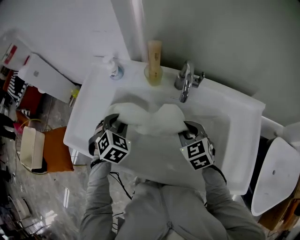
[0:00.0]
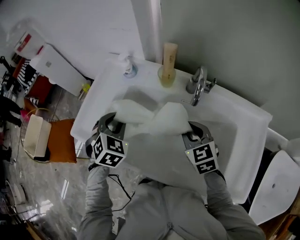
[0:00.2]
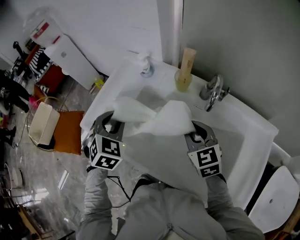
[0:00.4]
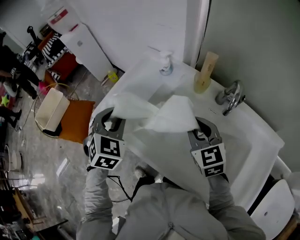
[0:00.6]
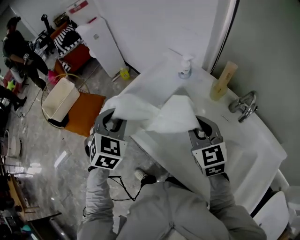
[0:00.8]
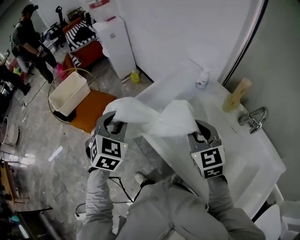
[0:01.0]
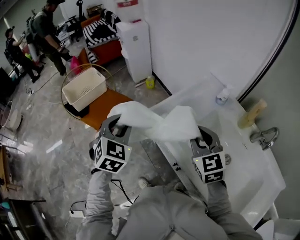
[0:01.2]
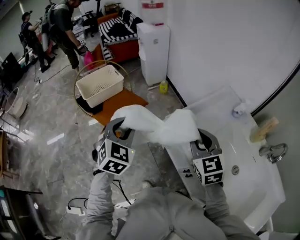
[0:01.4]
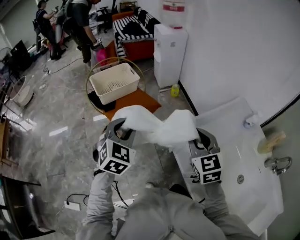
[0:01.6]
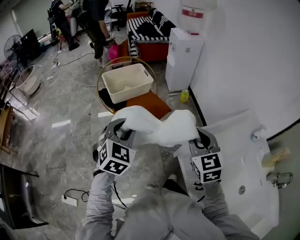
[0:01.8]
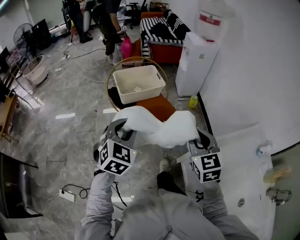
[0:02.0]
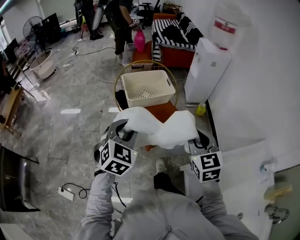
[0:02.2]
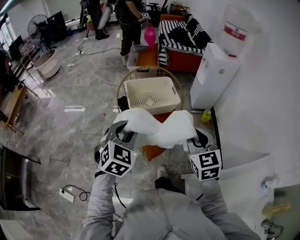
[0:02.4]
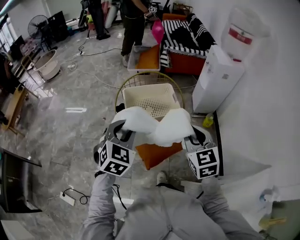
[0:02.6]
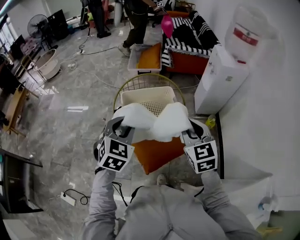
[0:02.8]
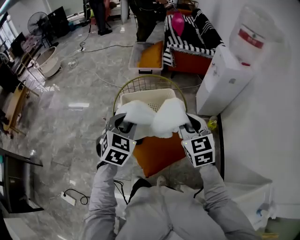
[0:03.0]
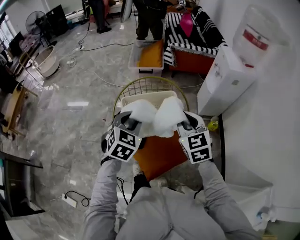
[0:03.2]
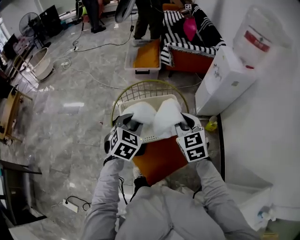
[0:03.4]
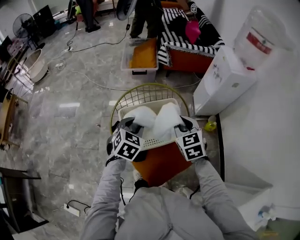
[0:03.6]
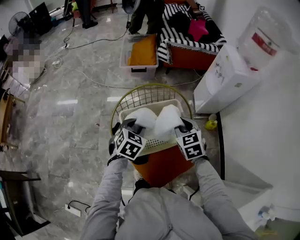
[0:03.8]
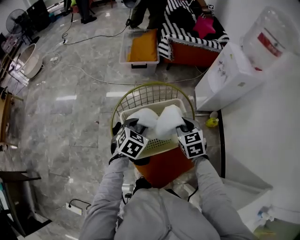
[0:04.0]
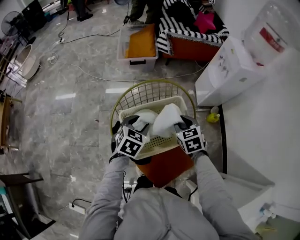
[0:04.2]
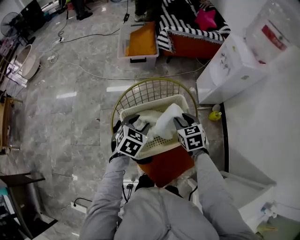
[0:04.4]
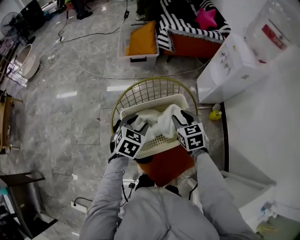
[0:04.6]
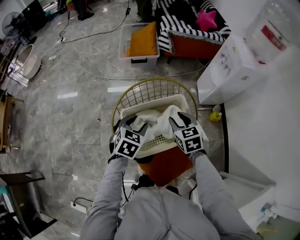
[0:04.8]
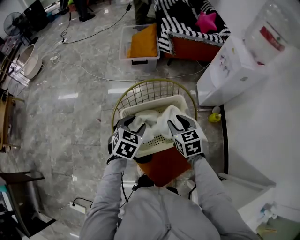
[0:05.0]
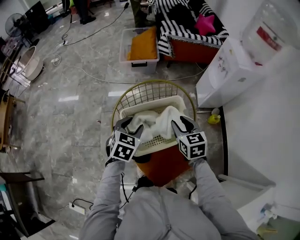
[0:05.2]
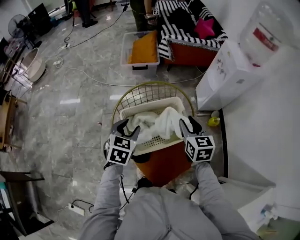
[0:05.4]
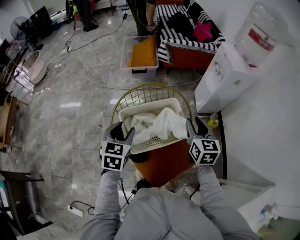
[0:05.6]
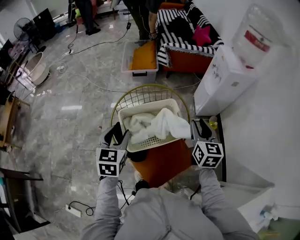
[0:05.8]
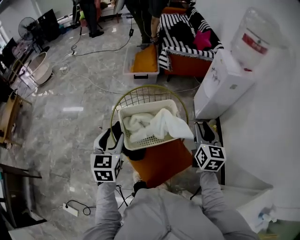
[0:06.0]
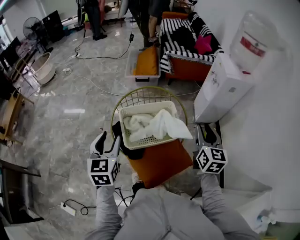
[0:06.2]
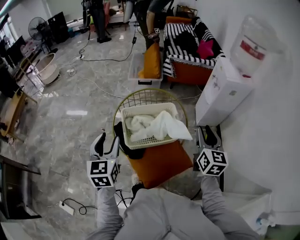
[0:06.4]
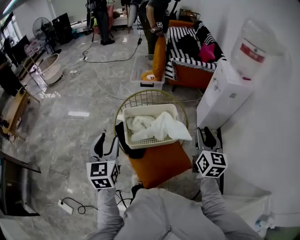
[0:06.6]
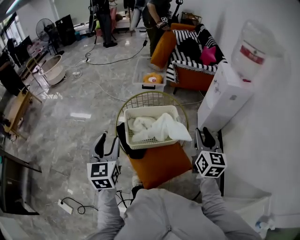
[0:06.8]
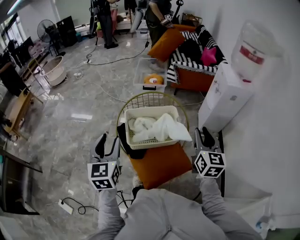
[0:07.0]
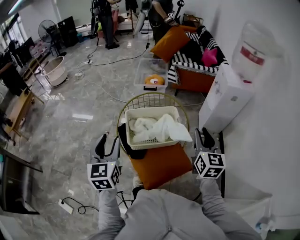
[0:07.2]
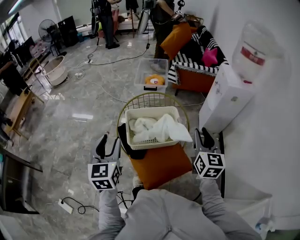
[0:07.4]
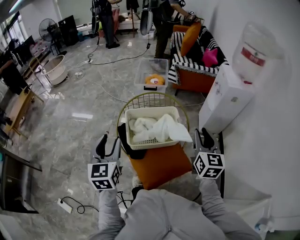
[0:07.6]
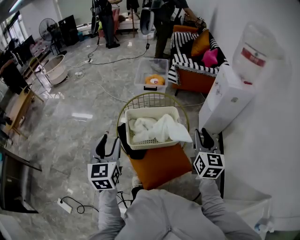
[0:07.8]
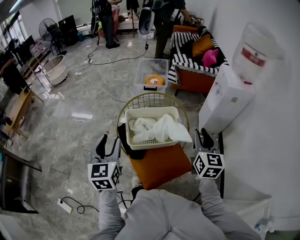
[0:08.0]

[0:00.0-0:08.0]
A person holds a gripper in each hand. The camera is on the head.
0:00.0 to 0:01.6: Both grippers are carried roughly 60 cm. The right gripper swivels some 50 degrees, while the left gripper turns by about 50 degrees.
0:01.6 to 0:03.2: Both grippers are carried forward, roughly 50 cm. The right gripper changes its angle by about 30 degrees. Meanwhile the left gripper changes its angle by approximately 20 degrees.
0:03.2 to 0:04.8: The right gripper heads downward, forward and to the left, covering approximately 20 cm, and turns by about 20 degrees. Meanwhile the left gripper heads downward and forward, covering approximately 20 cm.
0:04.8 to 0:06.4: The left gripper goes roughly 25 cm backward and upward, and turns by roughly 40 degrees. The right gripper travels to the right, upward and backward by about 25 cm, and swivels approximately 40 degrees.
0:06.4 to 0:08.0: There are only small adjustments of the grippers.

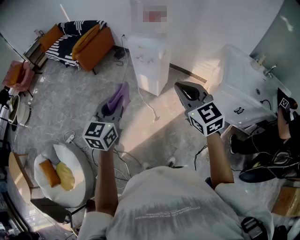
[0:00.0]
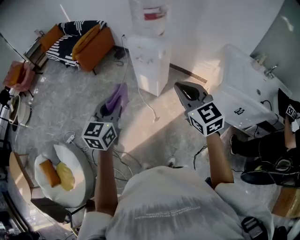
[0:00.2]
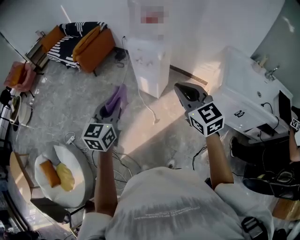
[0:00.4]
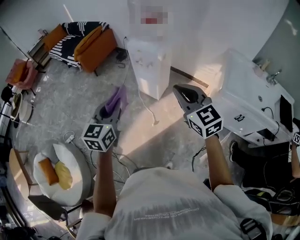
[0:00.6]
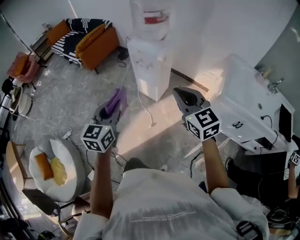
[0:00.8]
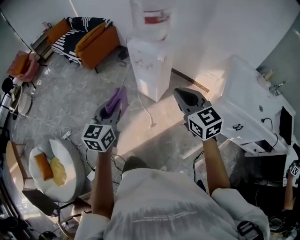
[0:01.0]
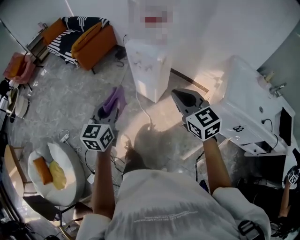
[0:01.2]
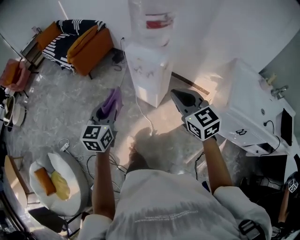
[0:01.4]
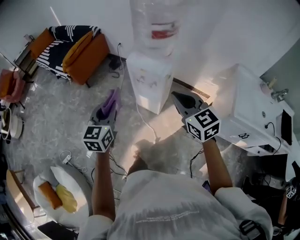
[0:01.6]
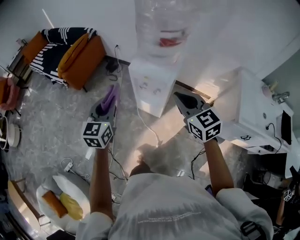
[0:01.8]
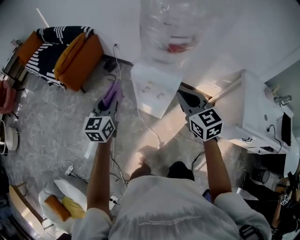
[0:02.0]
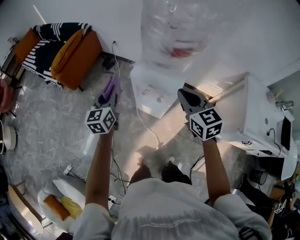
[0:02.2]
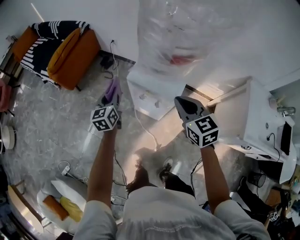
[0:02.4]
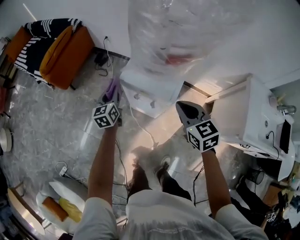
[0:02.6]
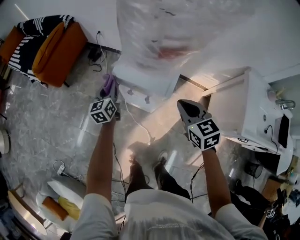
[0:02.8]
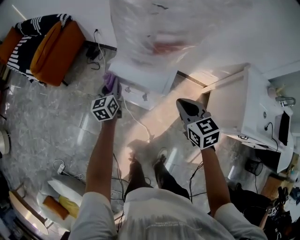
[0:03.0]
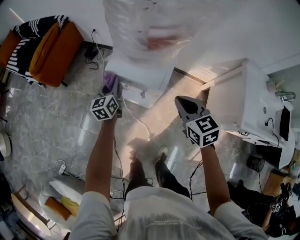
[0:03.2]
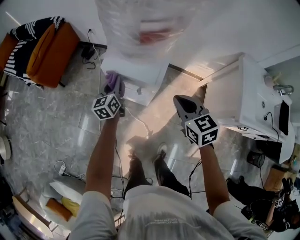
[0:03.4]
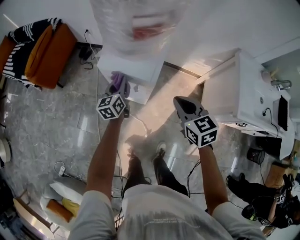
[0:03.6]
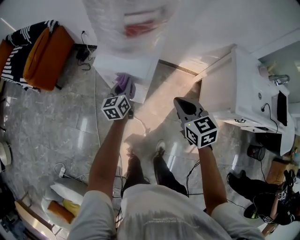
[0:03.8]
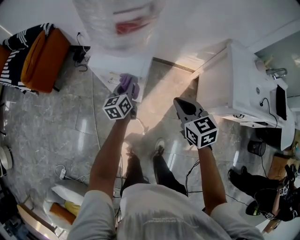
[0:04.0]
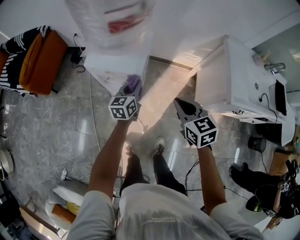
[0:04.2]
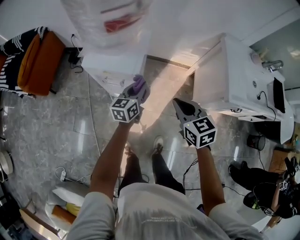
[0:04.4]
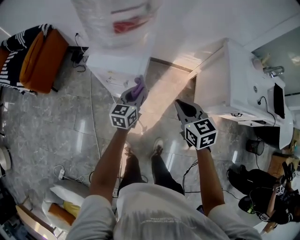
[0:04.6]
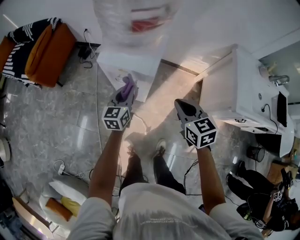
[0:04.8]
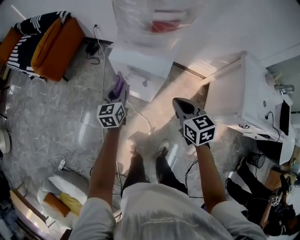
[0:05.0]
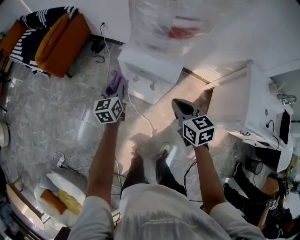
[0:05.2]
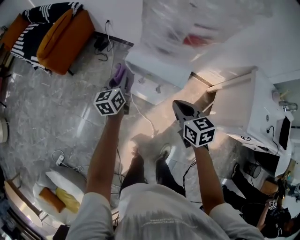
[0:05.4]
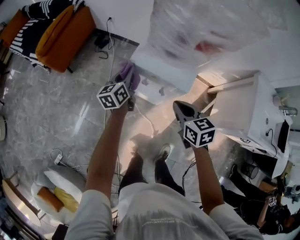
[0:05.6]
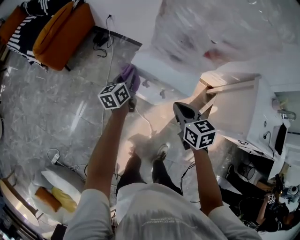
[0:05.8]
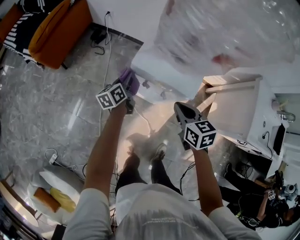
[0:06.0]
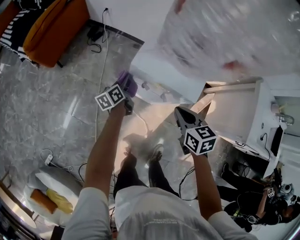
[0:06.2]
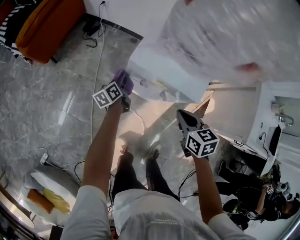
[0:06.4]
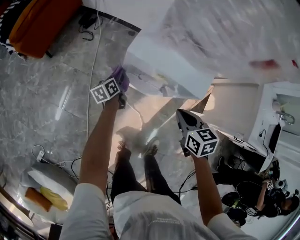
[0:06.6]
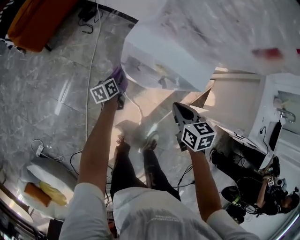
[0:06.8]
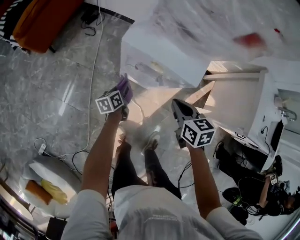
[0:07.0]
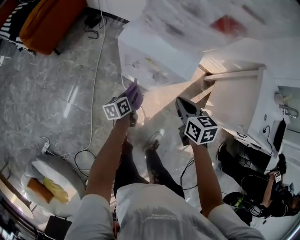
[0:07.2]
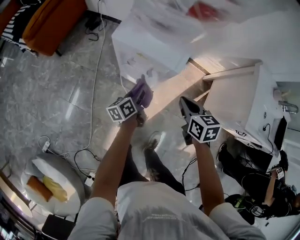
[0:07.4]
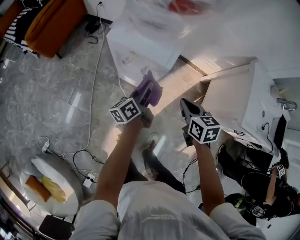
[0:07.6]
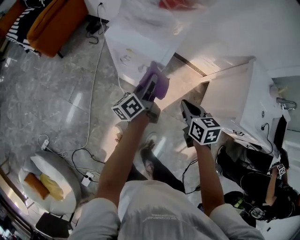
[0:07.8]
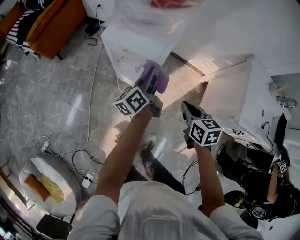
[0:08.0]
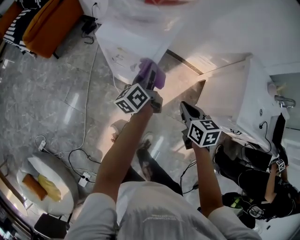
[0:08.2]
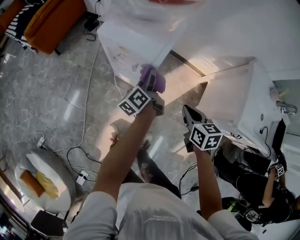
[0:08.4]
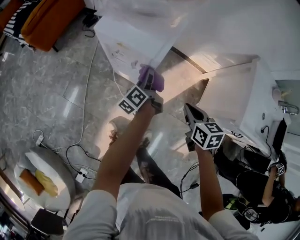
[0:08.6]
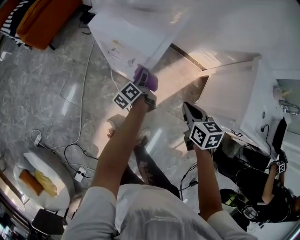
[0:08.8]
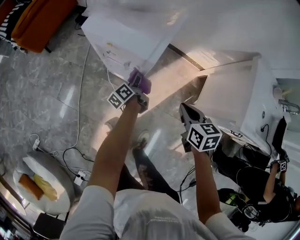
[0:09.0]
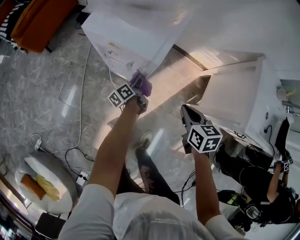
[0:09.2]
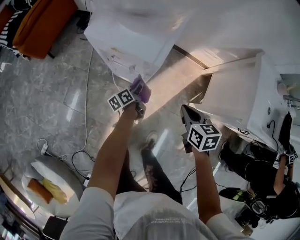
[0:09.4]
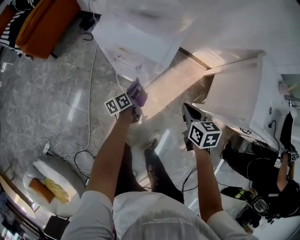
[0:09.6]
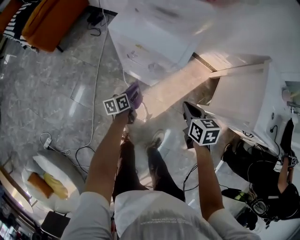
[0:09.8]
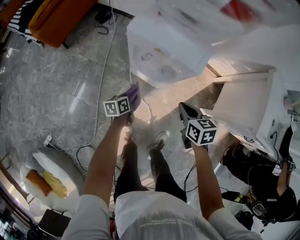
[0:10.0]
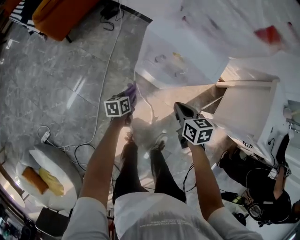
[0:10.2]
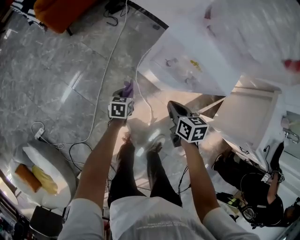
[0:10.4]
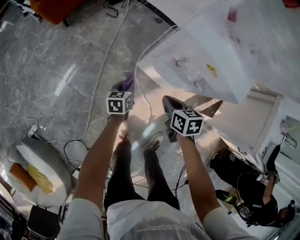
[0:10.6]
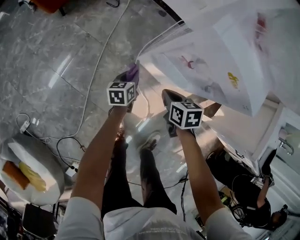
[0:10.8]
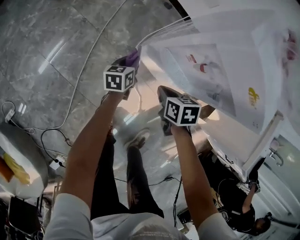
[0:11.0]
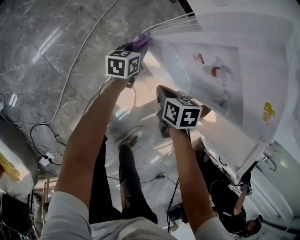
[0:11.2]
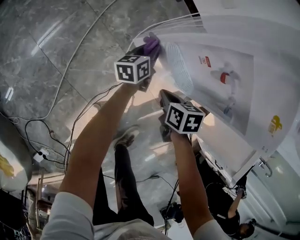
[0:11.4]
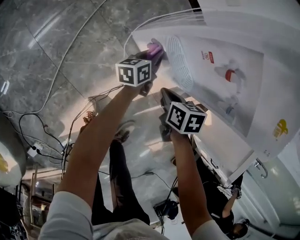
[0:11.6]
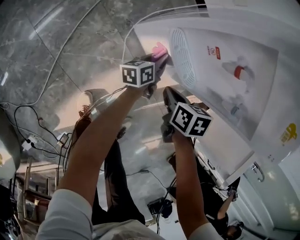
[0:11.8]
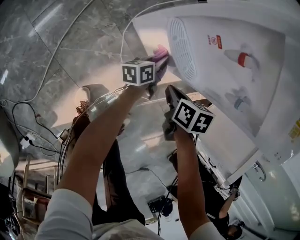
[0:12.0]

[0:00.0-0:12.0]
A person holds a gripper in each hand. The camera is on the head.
0:00.0 to 0:01.6: The grippers both shift forward by about 25 cm.
0:01.6 to 0:03.0: The right gripper moves forward and downward, some 25 cm, and swivels approximately 20 degrees. Meanwhile the left gripper goes roughly 40 cm forward and downward.
0:03.0 to 0:04.4: The right gripper is displaced backward and to the right by roughly 15 cm; the left gripper moves to the right and backward, about 30 cm, and rotates about 30 degrees.
0:04.4 to 0:06.0: The right gripper travels to the left, forward and downward by some 25 cm. Meanwhile the left gripper moves to the left and forward, approximately 30 cm, and changes its angle by roughly 30 degrees.
0:06.0 to 0:07.6: The left gripper travels to the right and backward by about 25 cm, and goes downward and returns, approximately 20 cm each way; the right gripper is displaced to the right and backward by approximately 15 cm.
0:07.6 to 0:09.0: The left gripper shifts some 15 cm downward, and changes its angle by roughly 20 degrees, while the right gripper moves to the right and downward, some 10 cm.
0:09.0 to 0:10.4: Both grippers move to the left, about 25 cm. The left gripper twists about 50 degrees clockwise, seen from behind.
0:10.4 to 0:12.0: The left gripper goes approximately 25 cm to the right and downward, and tips its fingers upward by roughly 30 degrees, while the right gripper is displaced downward by approximately 25 cm, and rotates roughly 30 degrees.

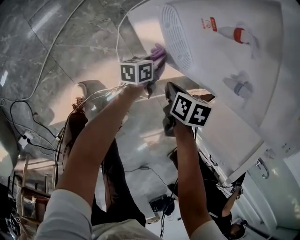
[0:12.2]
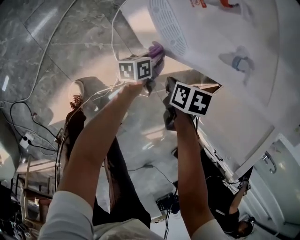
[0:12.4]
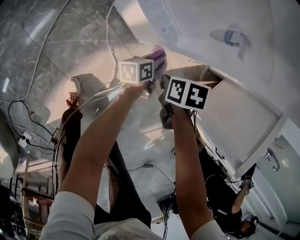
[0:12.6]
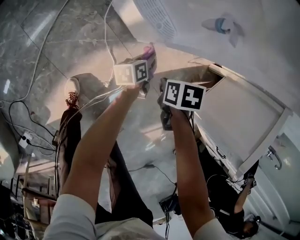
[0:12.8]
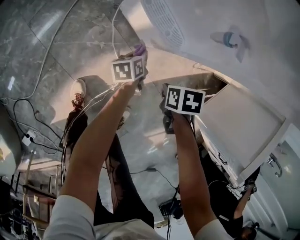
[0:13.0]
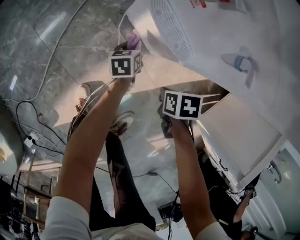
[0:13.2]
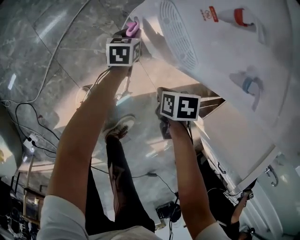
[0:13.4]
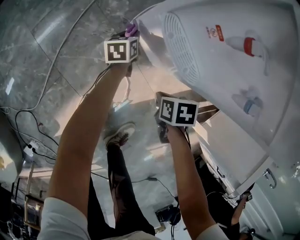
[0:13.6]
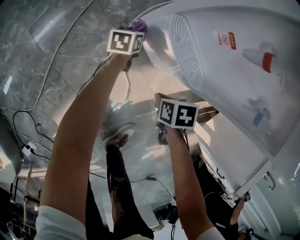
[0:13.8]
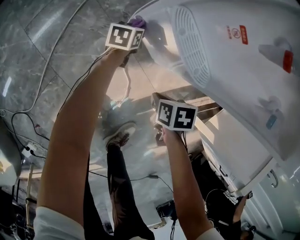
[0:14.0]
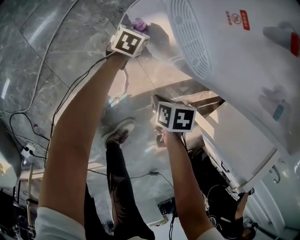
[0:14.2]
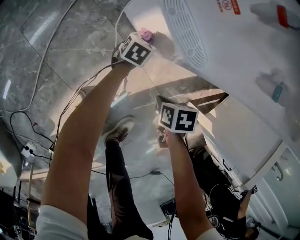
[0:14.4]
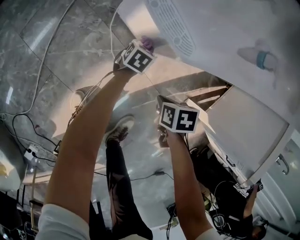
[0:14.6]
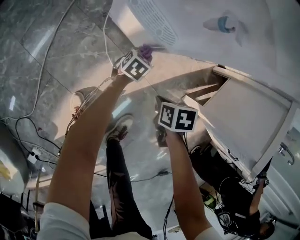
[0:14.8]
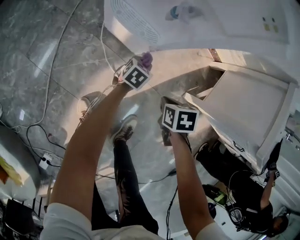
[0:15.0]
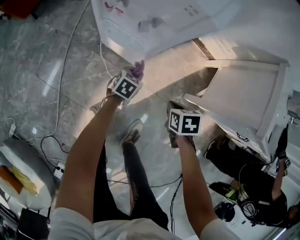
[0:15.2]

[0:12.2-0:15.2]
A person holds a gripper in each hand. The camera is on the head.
0:12.2 to 0:13.8: The right gripper is displaced downward by roughly 10 cm. Meanwhile the left gripper changes place by about 20 cm, and turns by about 30 degrees.
0:13.8 to 0:15.2: The left gripper ends up about 35 cm from where it was, and rotates around the line of its fingers by roughly 40 degrees, clockwise from behind, while the right gripper shifts by some 25 cm, and swivels approximately 20 degrees.
